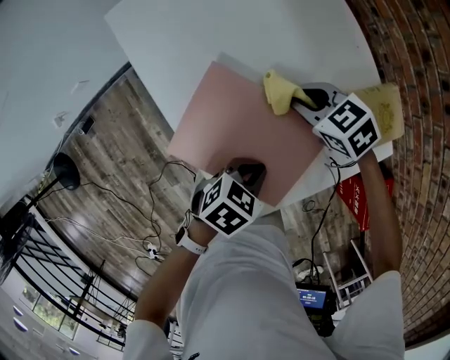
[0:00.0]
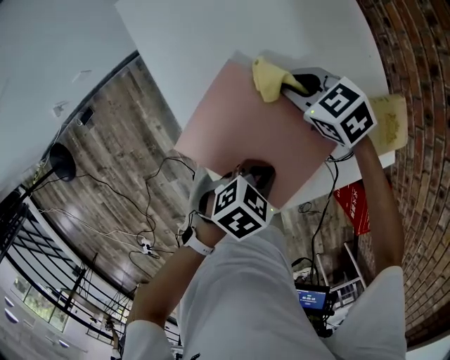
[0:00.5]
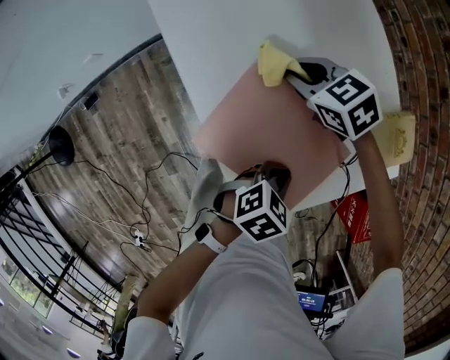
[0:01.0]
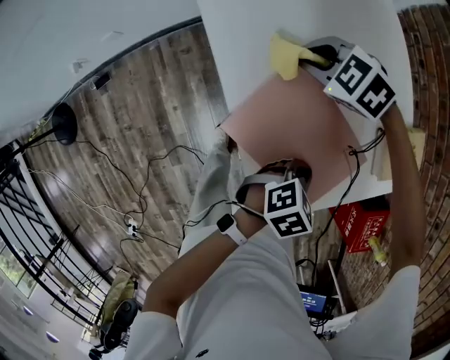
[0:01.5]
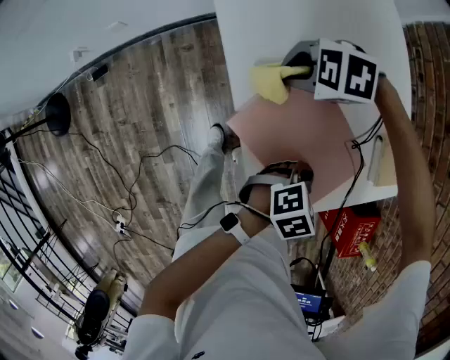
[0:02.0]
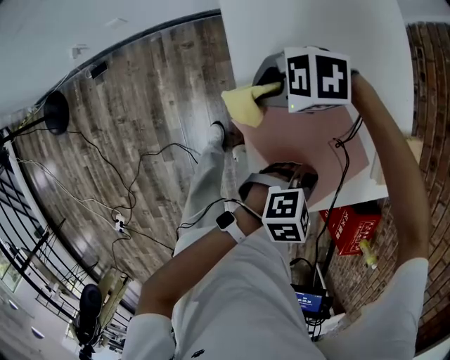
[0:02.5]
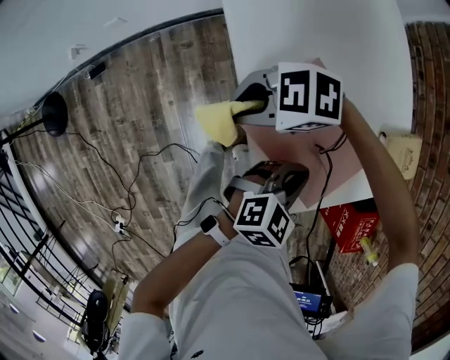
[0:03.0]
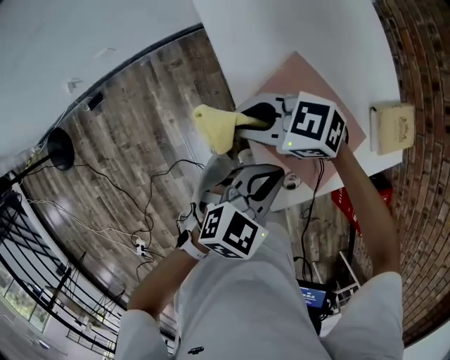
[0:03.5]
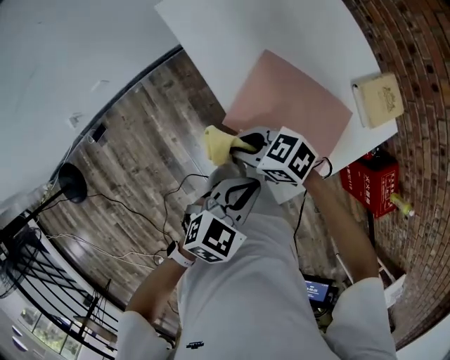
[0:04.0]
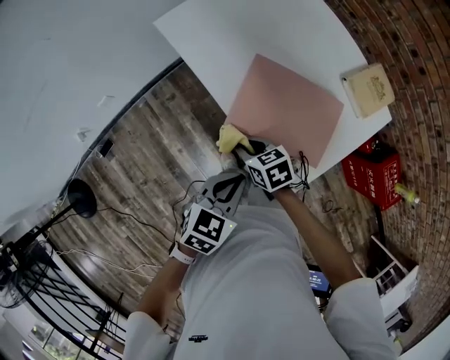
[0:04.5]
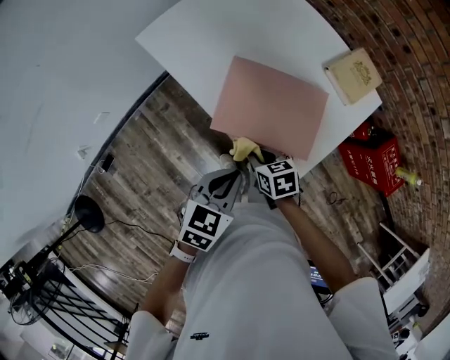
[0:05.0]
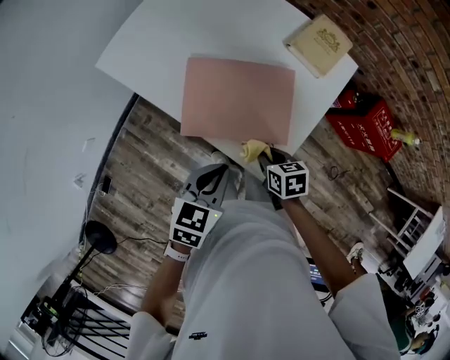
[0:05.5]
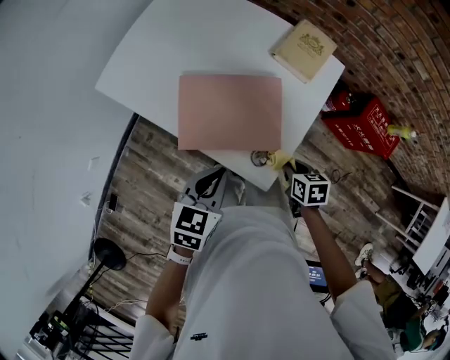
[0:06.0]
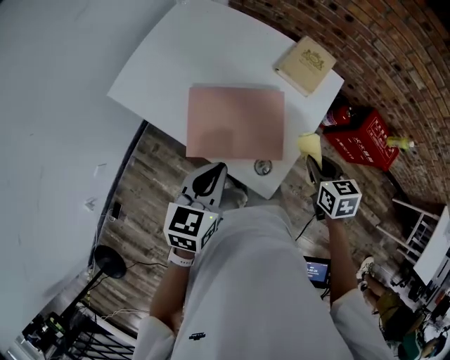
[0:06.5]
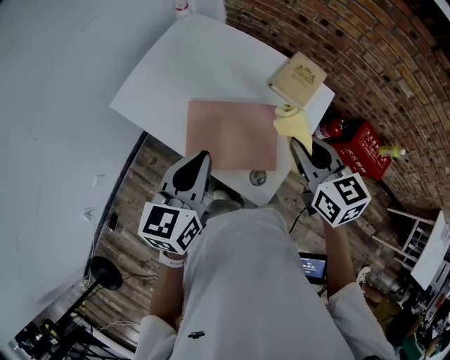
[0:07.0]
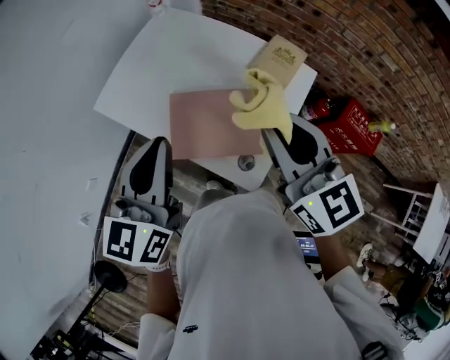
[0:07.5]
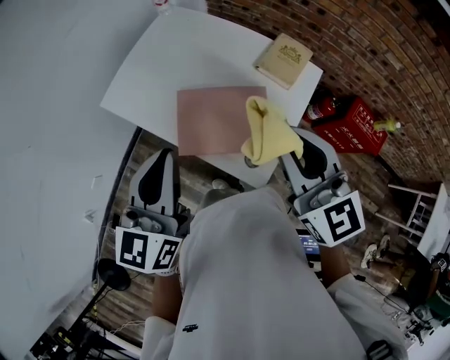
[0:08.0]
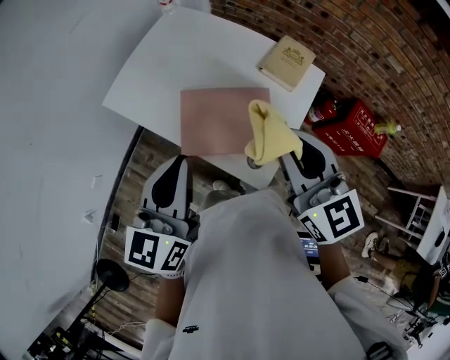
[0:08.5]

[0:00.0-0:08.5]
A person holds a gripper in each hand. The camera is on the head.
0:00.0 to 0:02.0: The right gripper shifts by about 20 cm, and rotates around the line of its fingers by approximately 50 degrees, counterclockwise from behind.
0:02.0 to 0:04.0: The right gripper moves approximately 20 cm, and changes its angle by about 60 degrees. Meanwhile the left gripper changes place by roughly 20 cm.
0:04.0 to 0:06.5: The left gripper travels upward by about 10 cm. The right gripper ends up approximately 35 cm from where it was, and turns by approximately 80 degrees.
0:06.5 to 0:08.5: The left gripper travels upward by about 15 cm, and rotates approximately 30 degrees; the right gripper shifts about 30 cm upward and to the left, and tilts its fingers roughly 40 degrees upward.

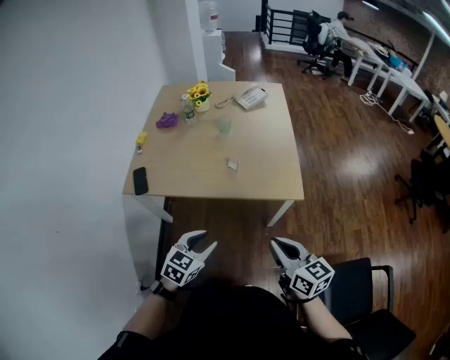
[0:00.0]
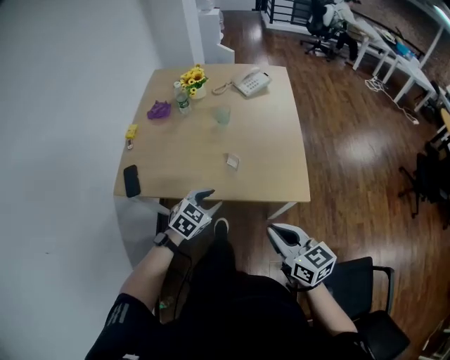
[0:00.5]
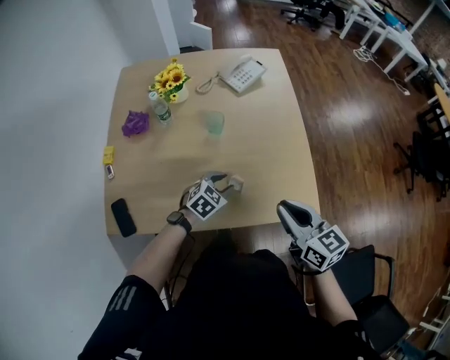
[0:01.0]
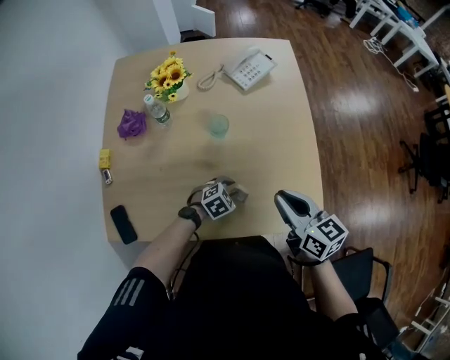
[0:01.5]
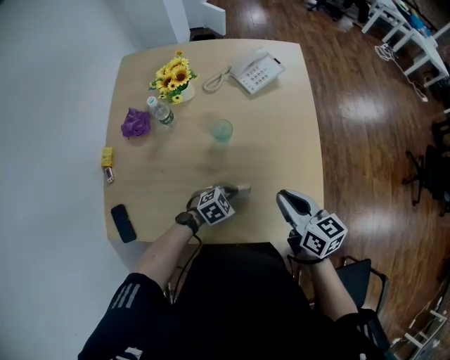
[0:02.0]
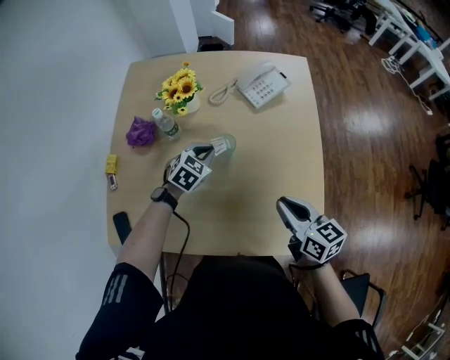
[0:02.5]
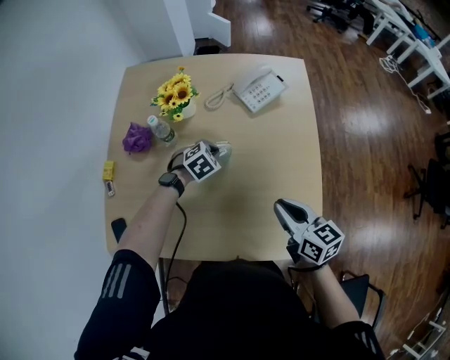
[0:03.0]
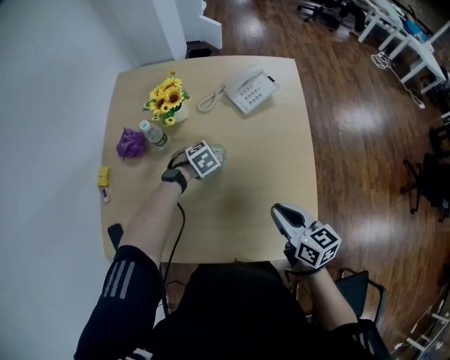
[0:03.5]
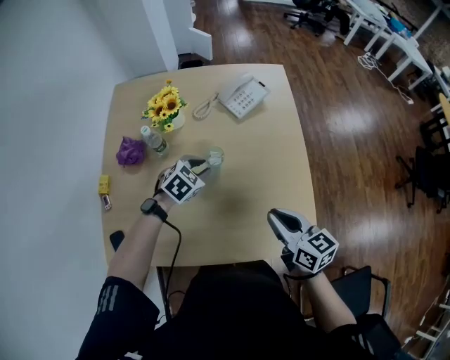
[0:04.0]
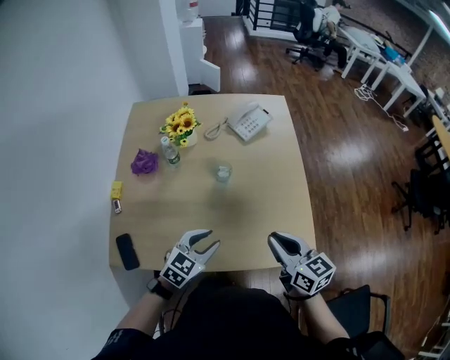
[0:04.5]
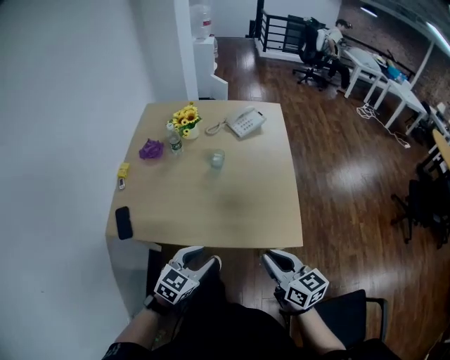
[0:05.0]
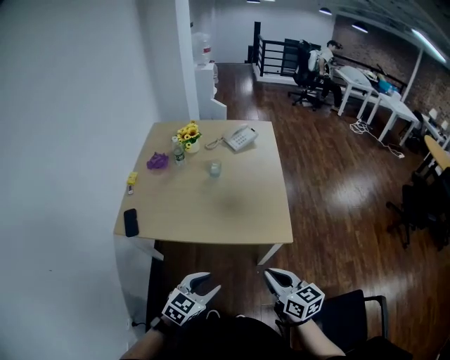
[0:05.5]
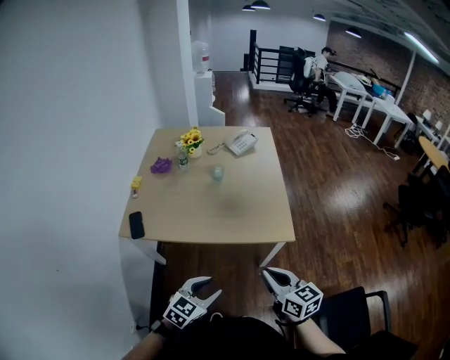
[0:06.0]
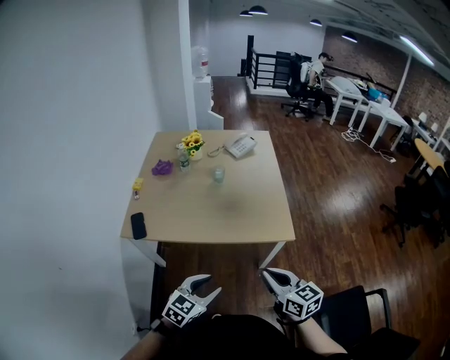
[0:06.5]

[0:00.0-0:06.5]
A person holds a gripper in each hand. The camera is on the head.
0:00.0 to 0:02.0: The two grippers travel together, forward, about 50 cm. The left gripper moves downward, some 20 cm, changes its angle by about 40 degrees, and closes up.
0:02.0 to 0:04.5: The right gripper heads backward and upward, covering about 10 cm, while the left gripper goes approximately 20 cm upward and to the left, moves about 20 cm forward and comes back, rotates roughly 30 degrees, and opens up.
0:04.5 to 0:06.5: The two grippers go approximately 40 cm backward.

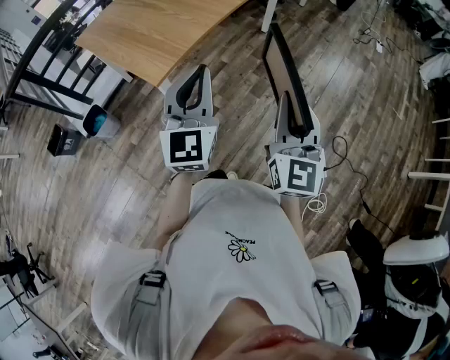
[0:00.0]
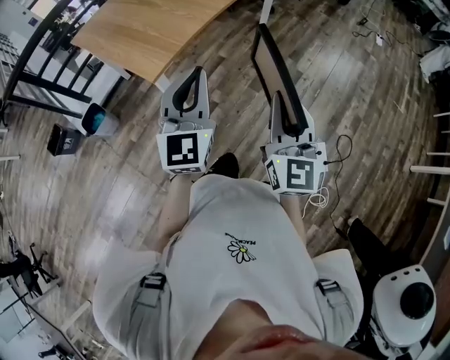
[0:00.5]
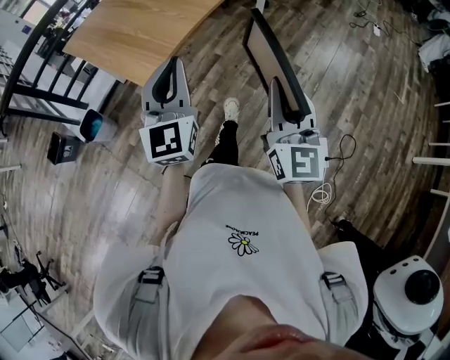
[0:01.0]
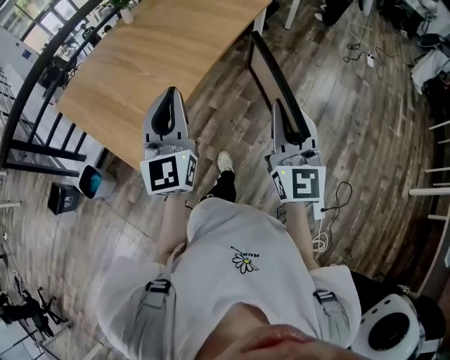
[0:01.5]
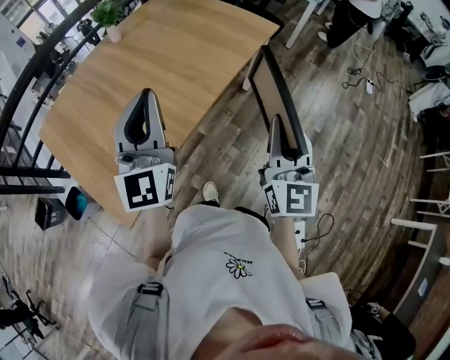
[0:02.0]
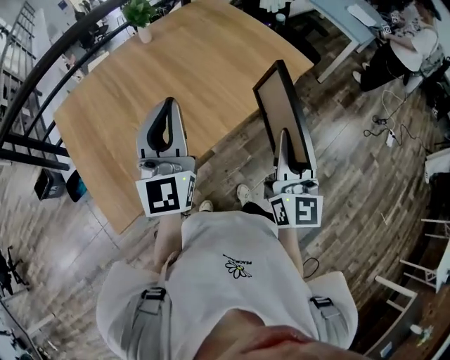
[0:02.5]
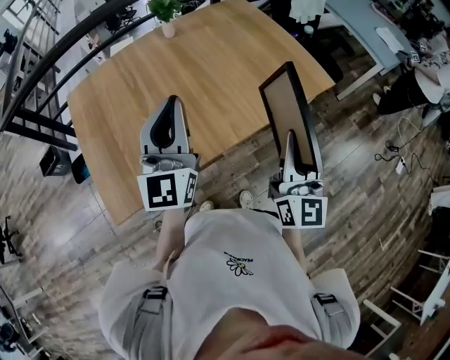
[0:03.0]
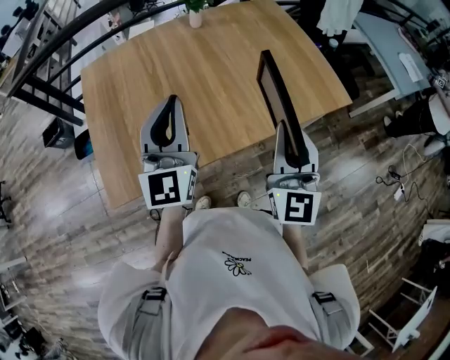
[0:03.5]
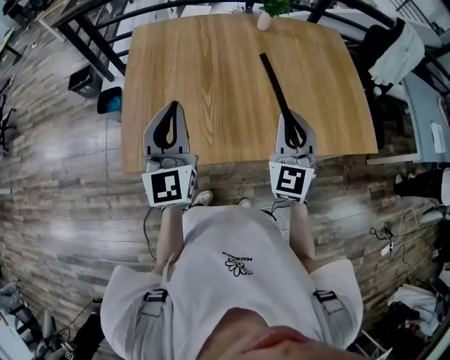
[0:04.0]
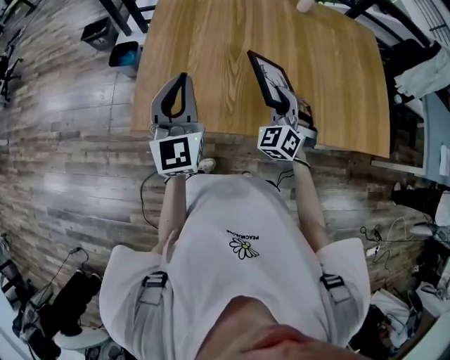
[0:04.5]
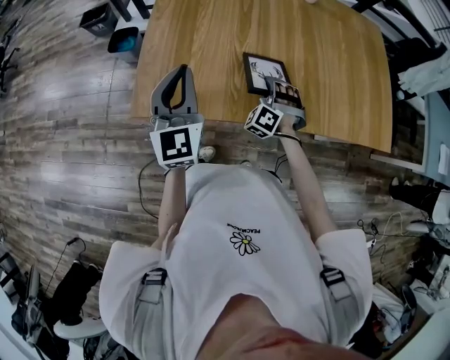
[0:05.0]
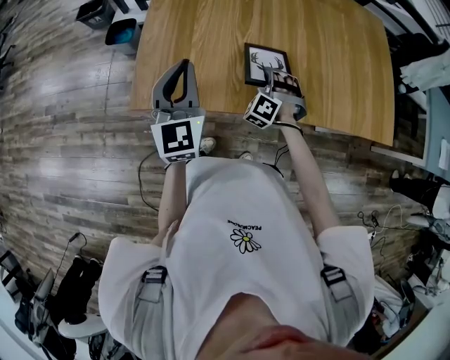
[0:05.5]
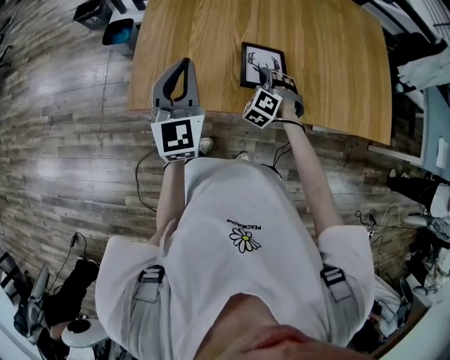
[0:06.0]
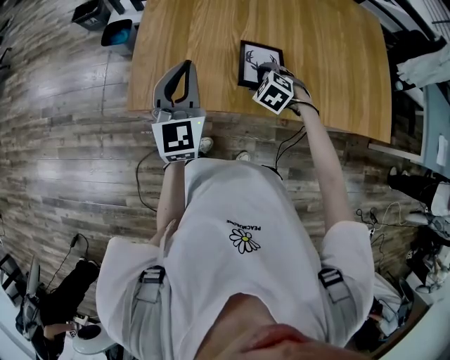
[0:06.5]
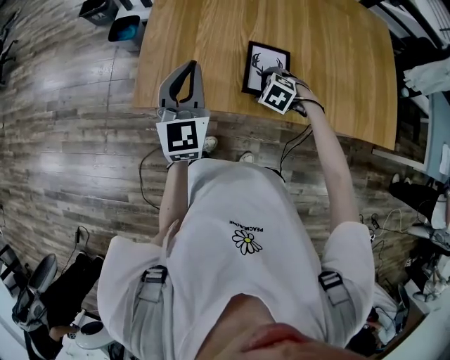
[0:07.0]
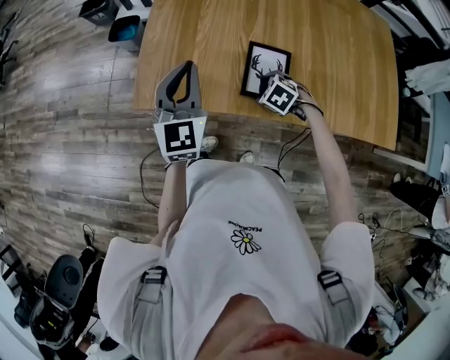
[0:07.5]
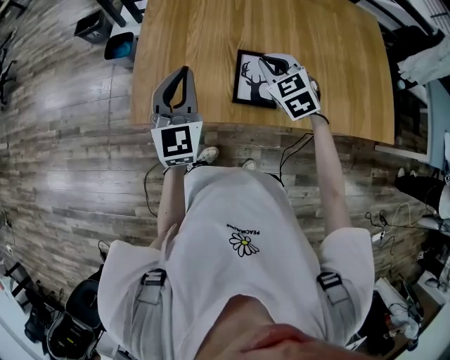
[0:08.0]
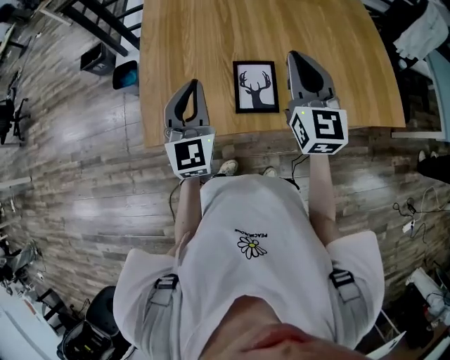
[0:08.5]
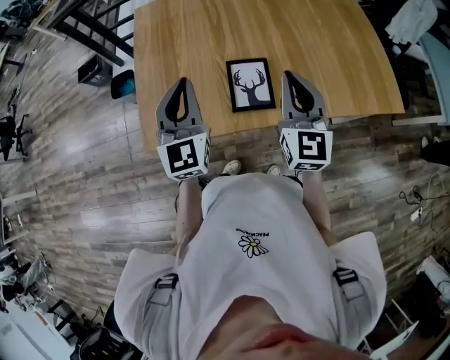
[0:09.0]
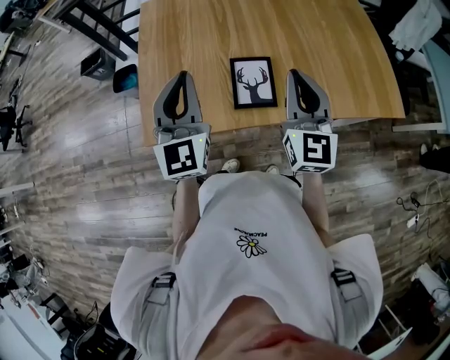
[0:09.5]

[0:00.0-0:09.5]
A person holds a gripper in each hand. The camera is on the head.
0:00.0 to 0:02.0: The two grippers travel together, forward, about 50 cm.
0:02.0 to 0:04.0: The left gripper ends up approximately 15 cm from where it was, and turns by roughly 50 degrees. Meanwhile the right gripper changes place by some 30 cm, and swivels some 50 degrees.
0:04.0 to 0:05.5: The left gripper shifts some 15 cm to the left and downward. The right gripper goes about 30 cm downward and to the left, and twists roughly 60 degrees counterclockwise, seen from behind.
0:05.5 to 0:07.5: The right gripper moves some 10 cm, angles its fingers downward, by approximately 40 degrees, and opens up.
0:07.5 to 0:09.5: The right gripper moves upward, about 35 cm, points its fingers some 80 degrees further upward, and closes. The left gripper moves upward, about 10 cm.

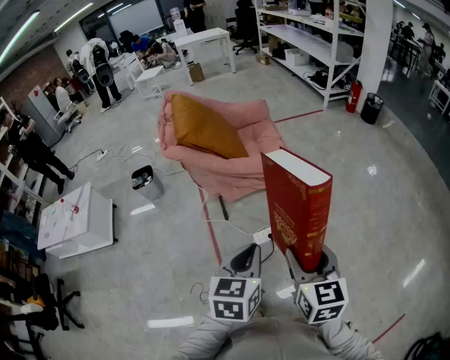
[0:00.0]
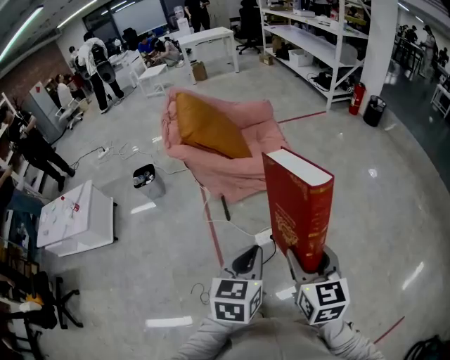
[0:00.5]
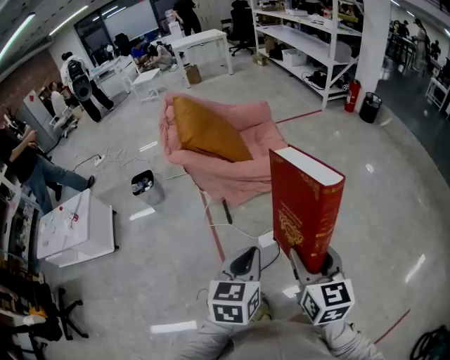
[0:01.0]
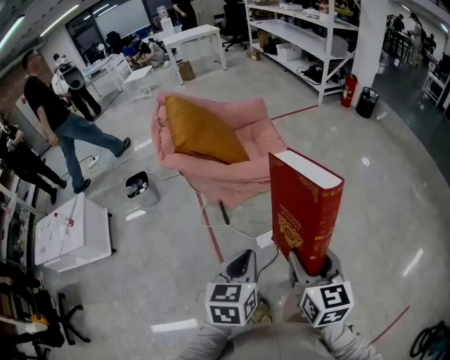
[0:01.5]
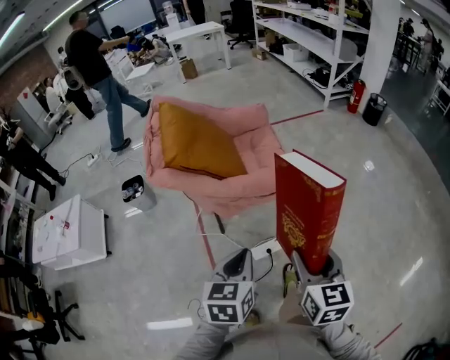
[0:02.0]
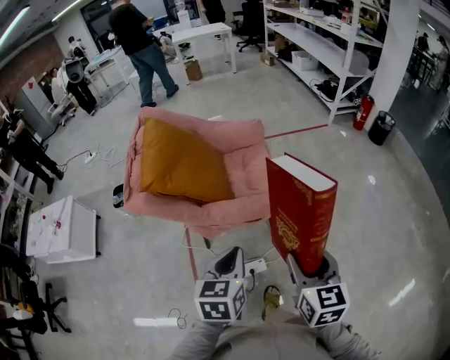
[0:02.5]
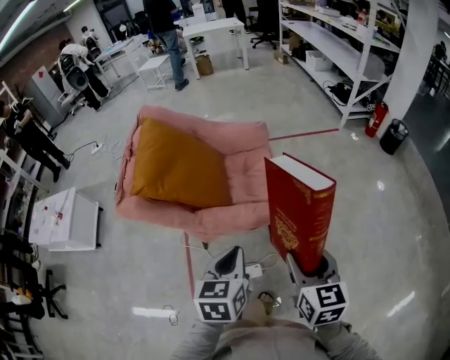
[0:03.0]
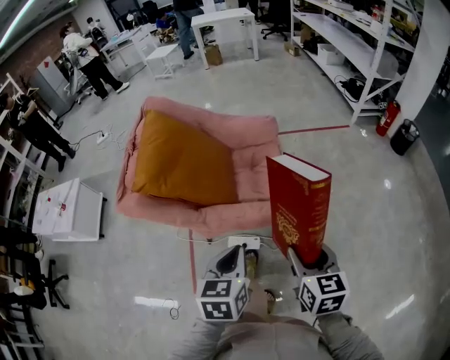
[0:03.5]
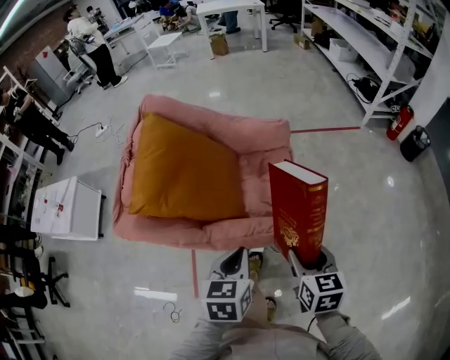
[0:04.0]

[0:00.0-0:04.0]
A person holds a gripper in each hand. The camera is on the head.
0:00.0 to 0:02.0: The grippers both shift forward by about 15 cm.
0:02.0 to 0:04.0: The two grippers go about 30 cm forward. The right gripper turns by some 20 degrees.
